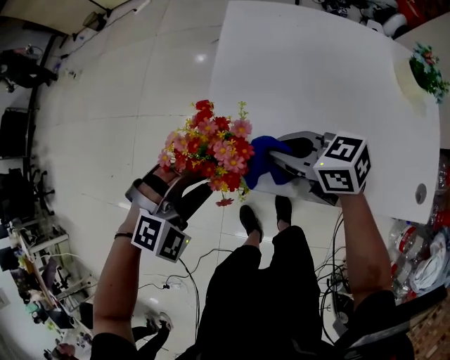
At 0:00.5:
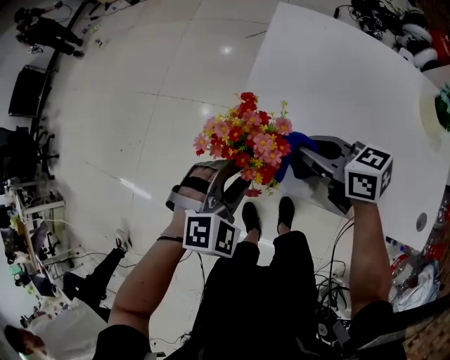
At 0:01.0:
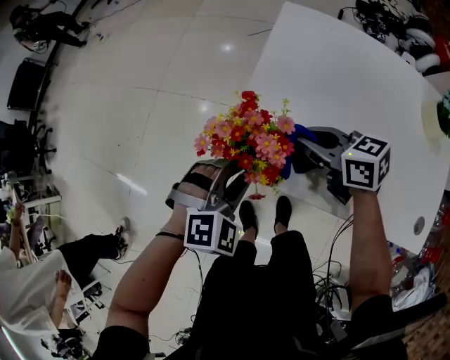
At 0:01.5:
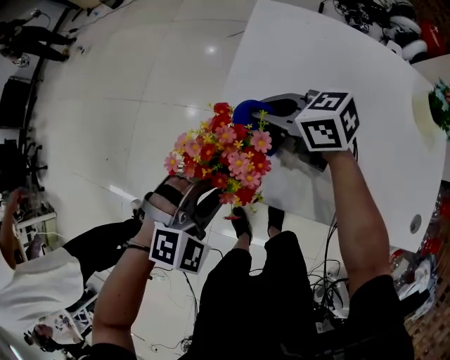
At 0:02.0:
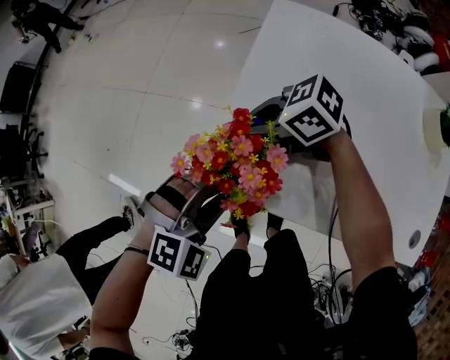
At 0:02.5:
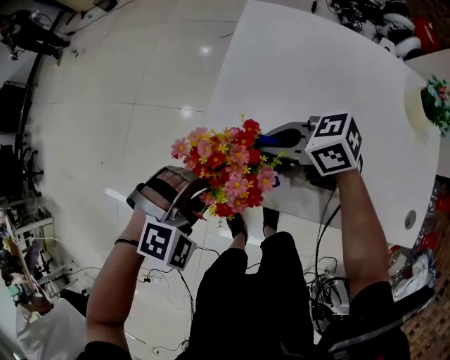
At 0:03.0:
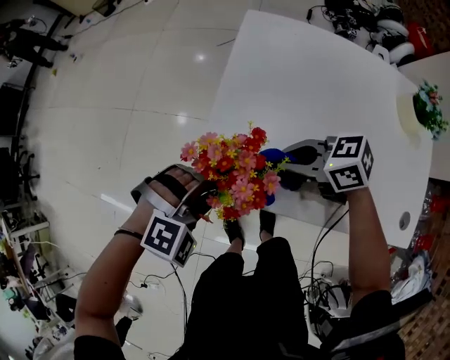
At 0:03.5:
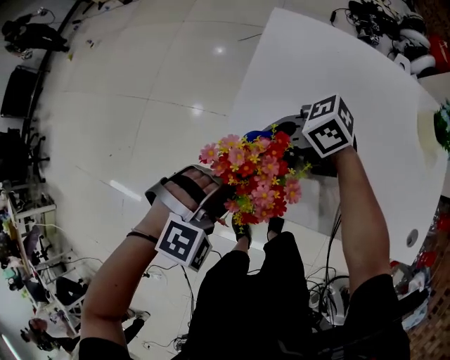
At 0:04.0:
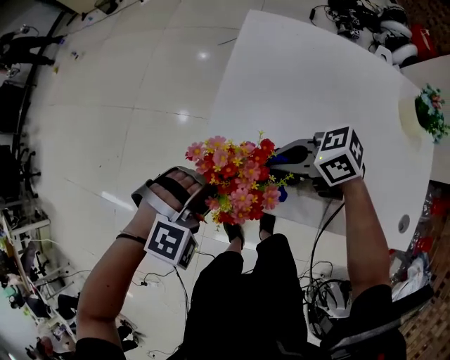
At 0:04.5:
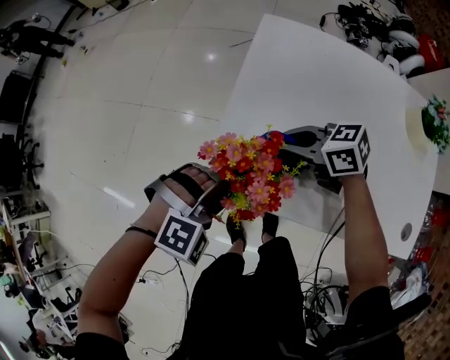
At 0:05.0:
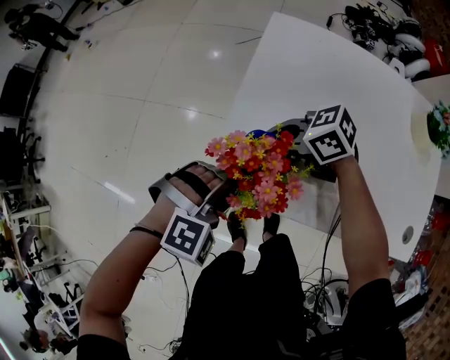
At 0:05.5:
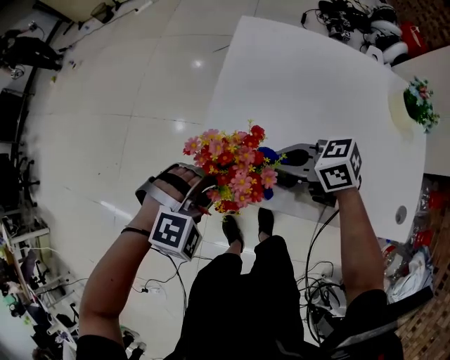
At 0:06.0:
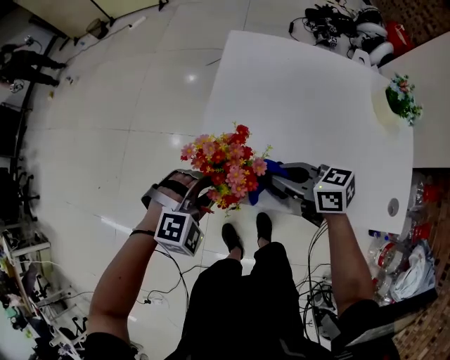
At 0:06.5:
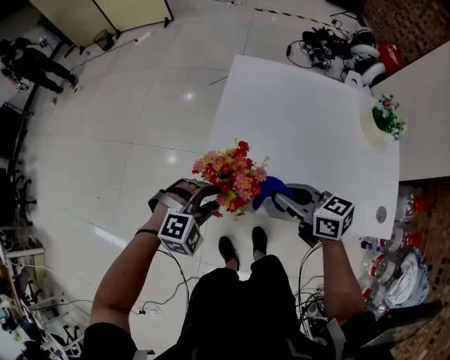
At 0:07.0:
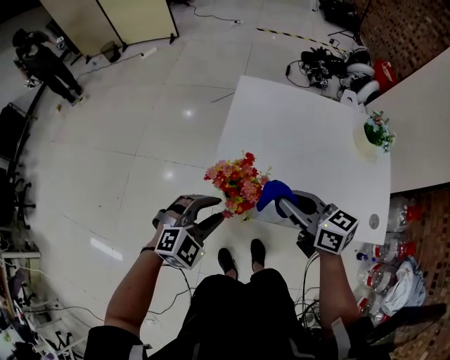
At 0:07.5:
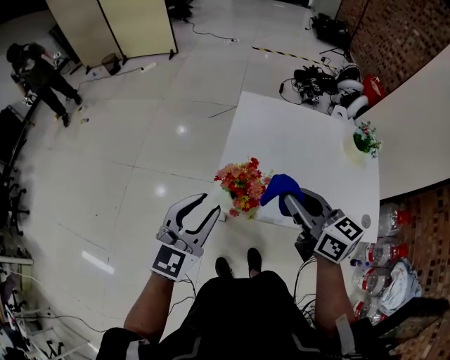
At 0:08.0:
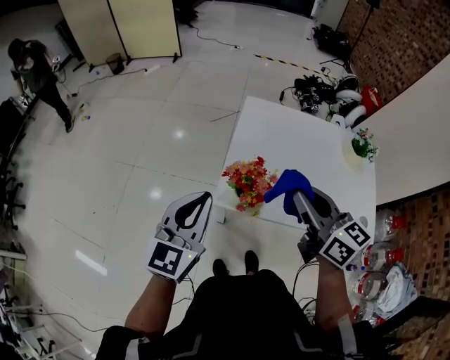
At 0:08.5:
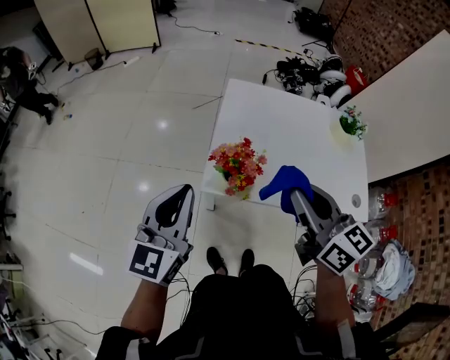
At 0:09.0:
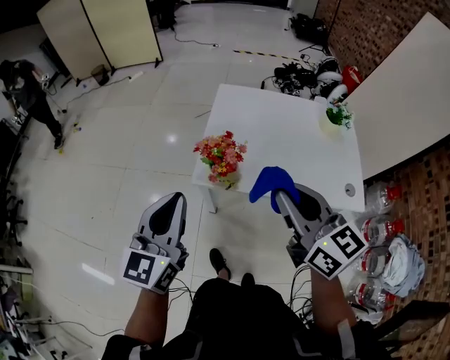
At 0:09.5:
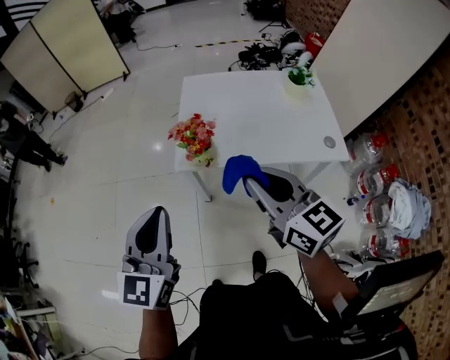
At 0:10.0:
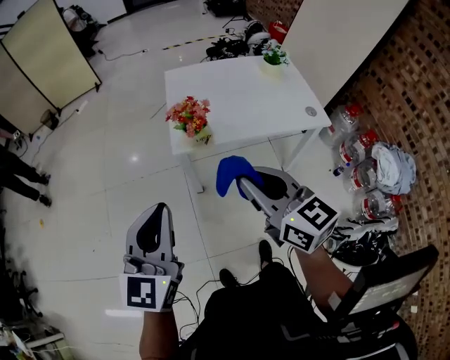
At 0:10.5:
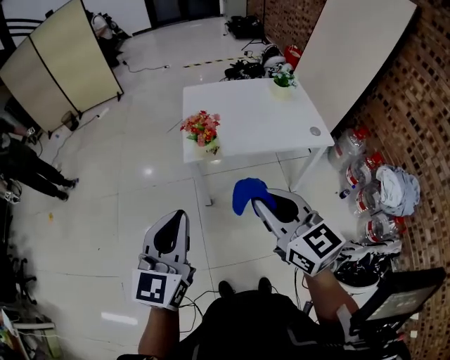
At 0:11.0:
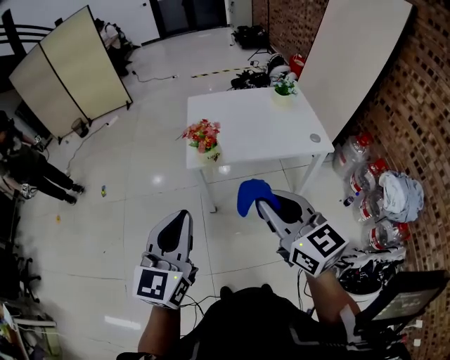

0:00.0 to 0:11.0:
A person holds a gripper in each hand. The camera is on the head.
0:00.0 to 0:02.0: The right gripper shifts by about 15 cm, and rotates approximately 30 degrees.
0:03.5 to 0:05.5: The right gripper ends up about 10 cm from where it was.
0:05.5 to 0:07.5: The grippers both shift upward by approximately 25 cm. The right gripper turns by roughly 50 degrees. Meanwhile the left gripper angles its fingers upward, by some 50 degrees.
0:07.5 to 0:09.0: Both grippers move backward and upward, roughly 15 cm. The left gripper closes its fingers.
0:09.0 to 0:11.0: The two grippers go some 25 cm backward.

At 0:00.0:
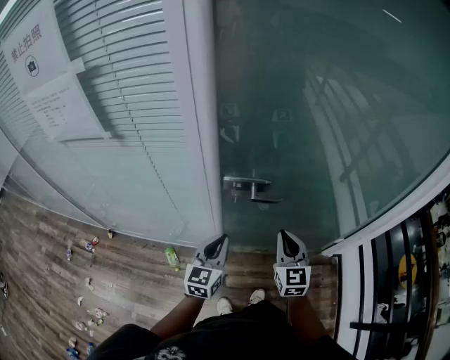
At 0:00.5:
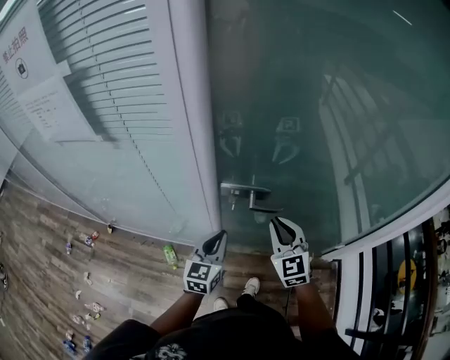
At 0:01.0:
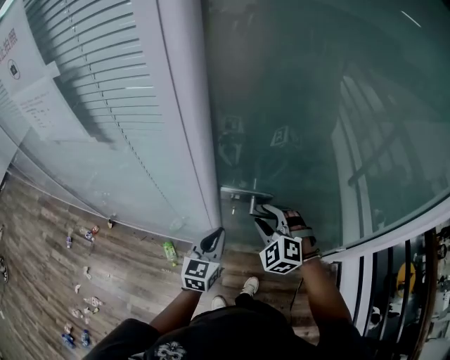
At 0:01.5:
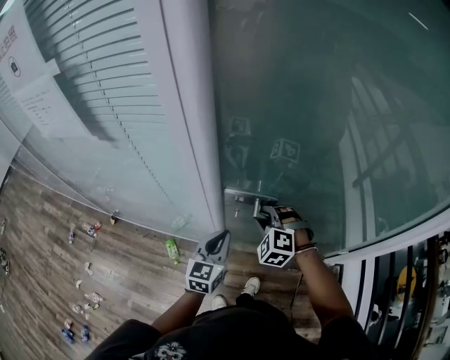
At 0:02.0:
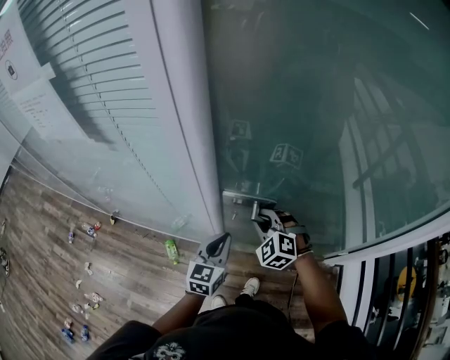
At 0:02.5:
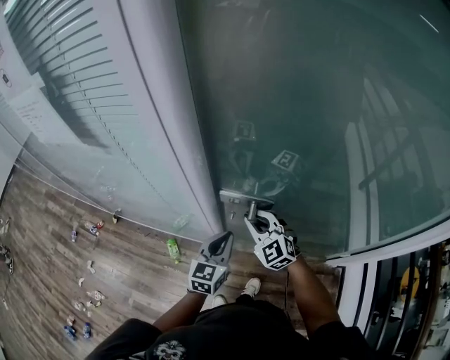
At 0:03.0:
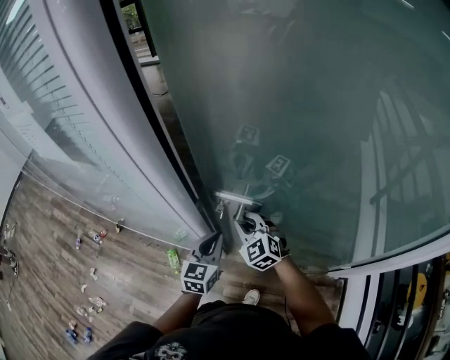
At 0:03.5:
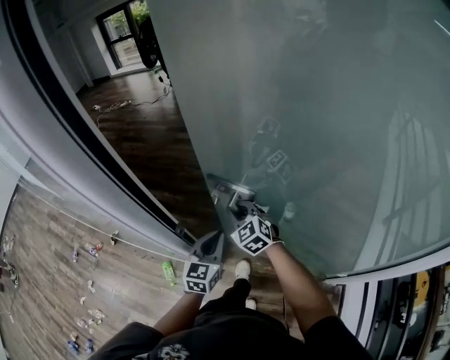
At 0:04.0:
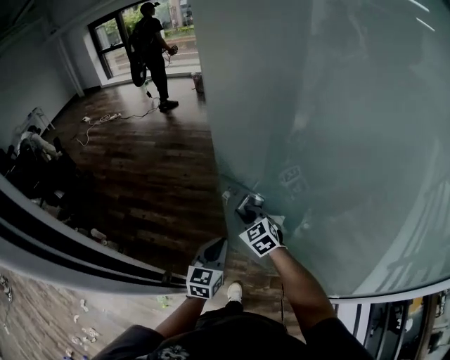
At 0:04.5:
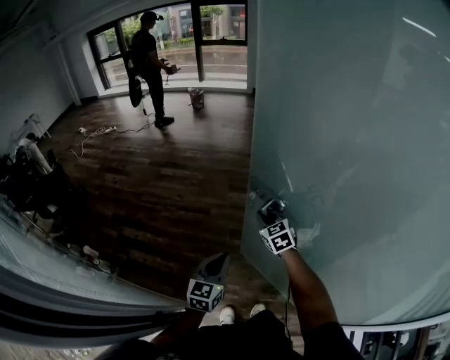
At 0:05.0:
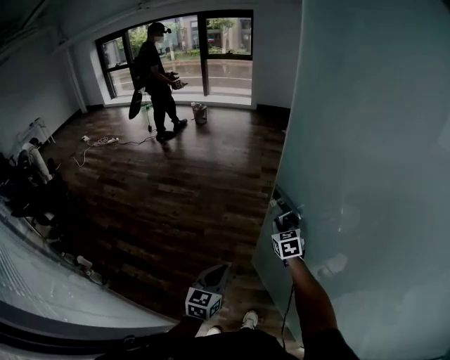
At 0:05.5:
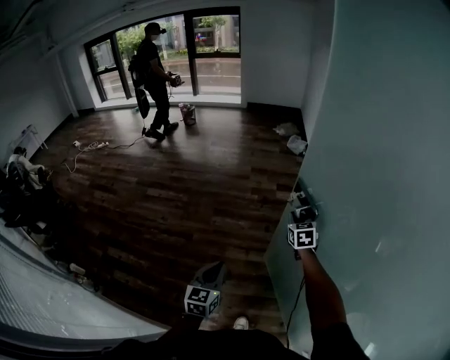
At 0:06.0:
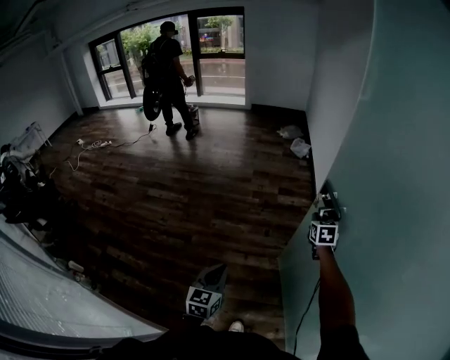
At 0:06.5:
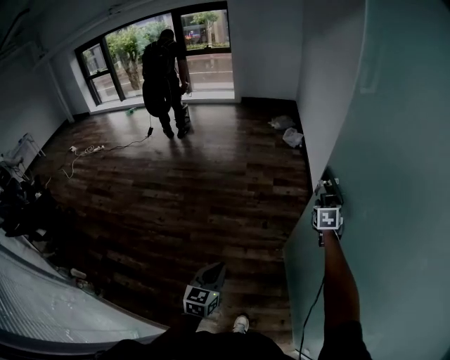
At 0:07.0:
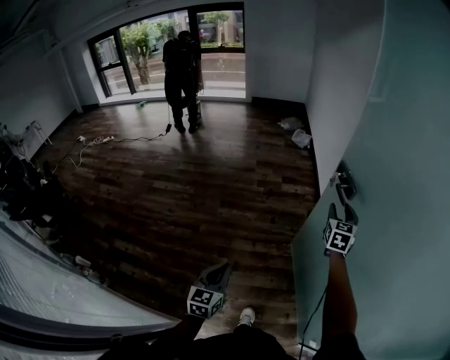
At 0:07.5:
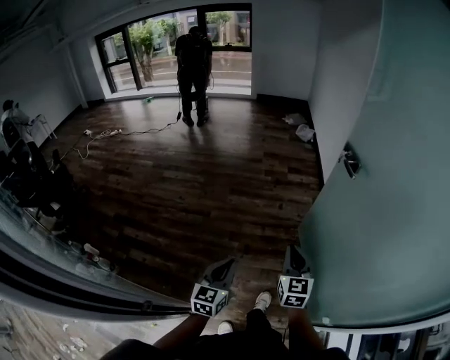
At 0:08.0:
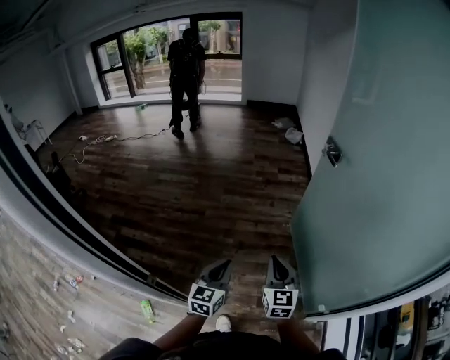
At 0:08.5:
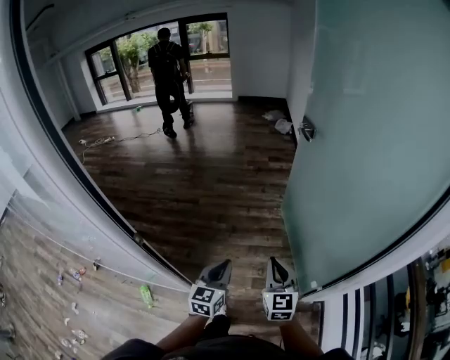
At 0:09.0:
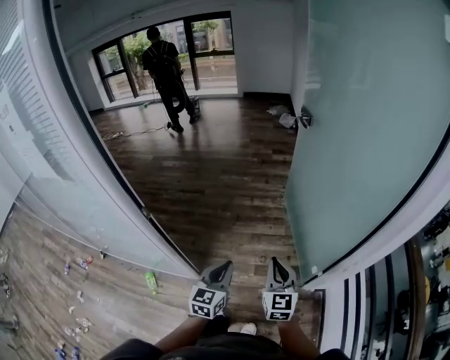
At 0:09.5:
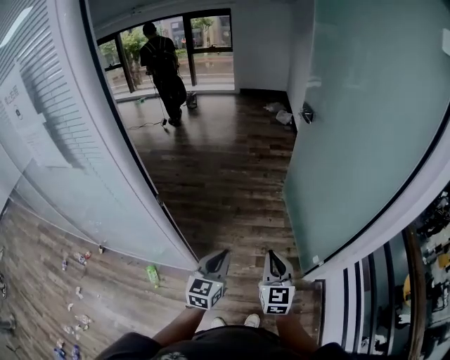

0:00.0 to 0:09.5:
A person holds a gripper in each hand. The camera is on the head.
0:00.0 to 0:02.0: The left gripper travels forward by approximately 10 cm. The right gripper is displaced forward and to the left by roughly 15 cm, twists roughly 50 degrees counterclockwise, seen from behind, and opens, then closes again.
0:02.0 to 0:04.0: The left gripper is displaced forward and to the right by some 30 cm. Meanwhile the right gripper goes about 30 cm forward, and swivels roughly 30 degrees.
0:04.0 to 0:05.5: The left gripper moves forward and to the right, some 35 cm, while the right gripper goes about 60 cm to the right and forward, and turns by about 40 degrees.
0:05.5 to 0:07.5: The right gripper heads backward, covering about 40 cm, and opens and closes again; the left gripper moves backward, roughly 25 cm.
0:07.5 to 0:09.5: The two grippers travel together, backward, roughly 50 cm.

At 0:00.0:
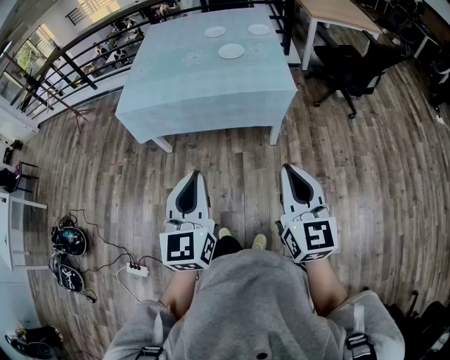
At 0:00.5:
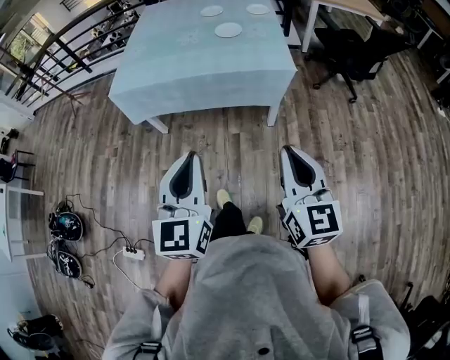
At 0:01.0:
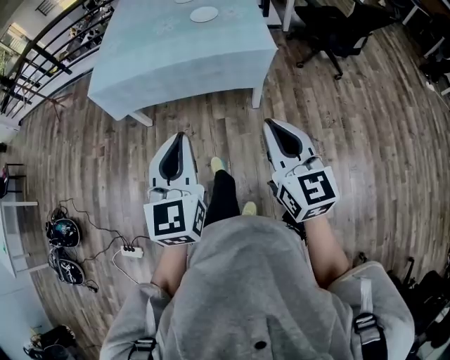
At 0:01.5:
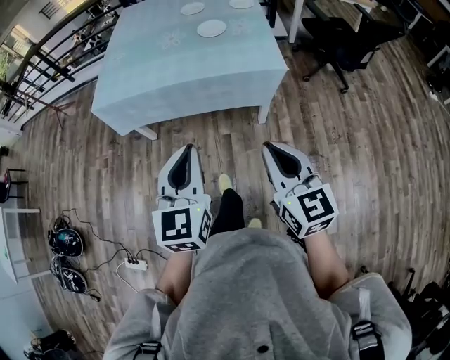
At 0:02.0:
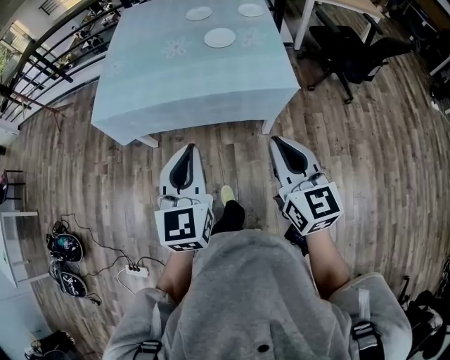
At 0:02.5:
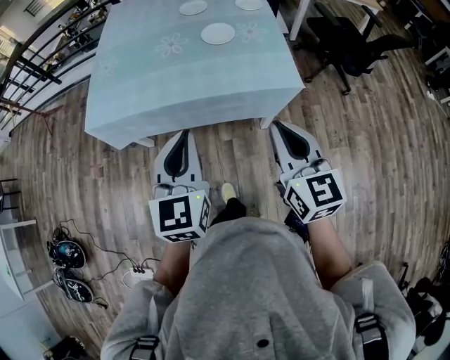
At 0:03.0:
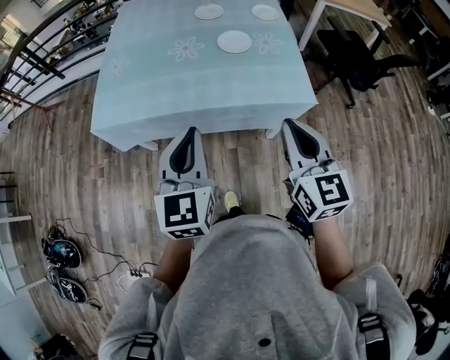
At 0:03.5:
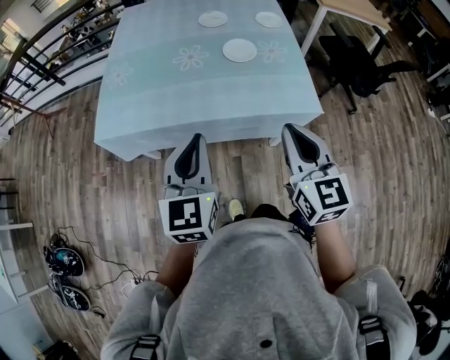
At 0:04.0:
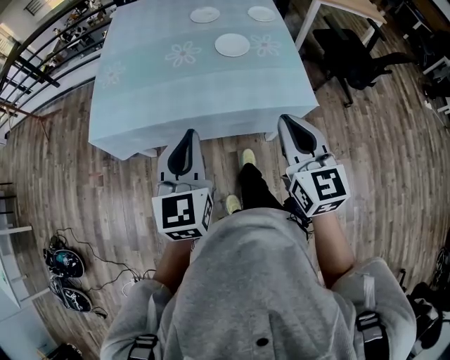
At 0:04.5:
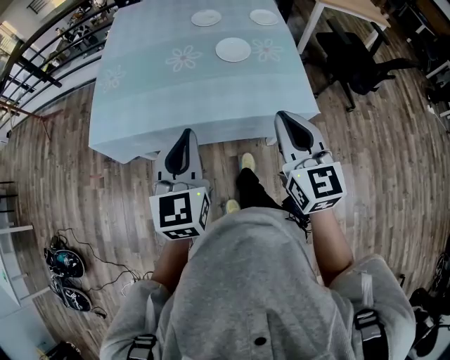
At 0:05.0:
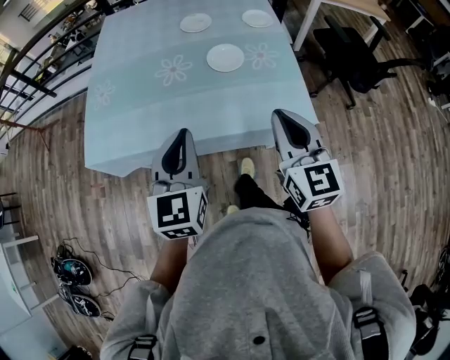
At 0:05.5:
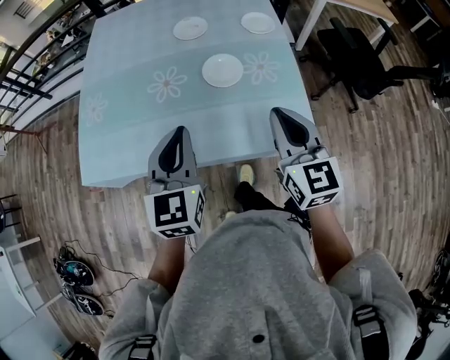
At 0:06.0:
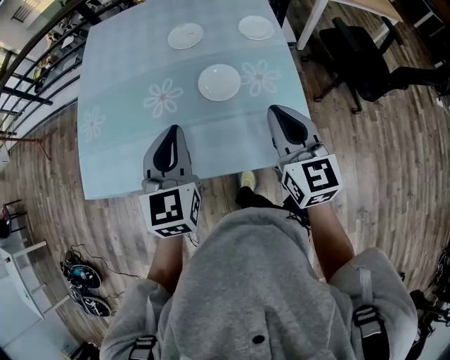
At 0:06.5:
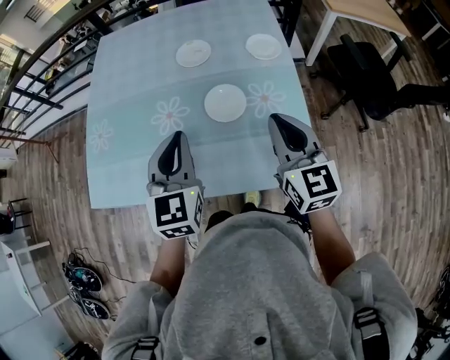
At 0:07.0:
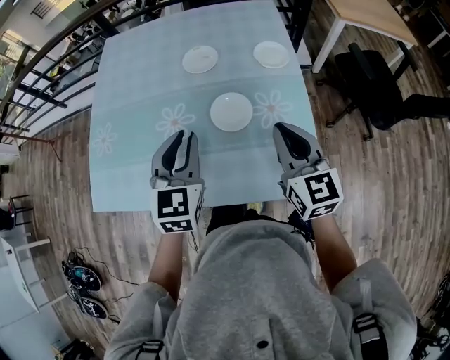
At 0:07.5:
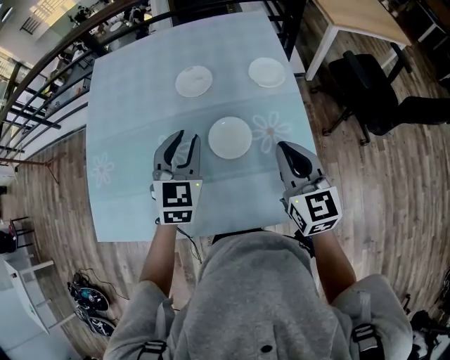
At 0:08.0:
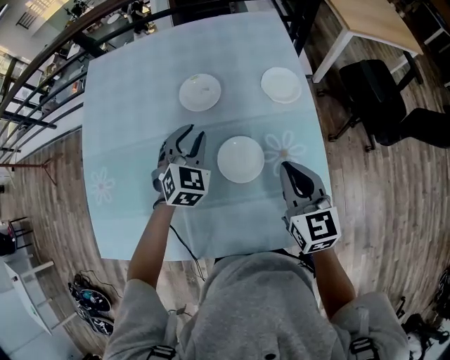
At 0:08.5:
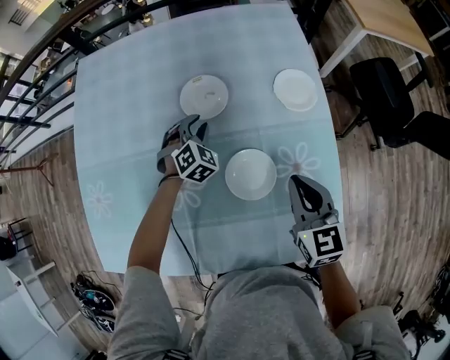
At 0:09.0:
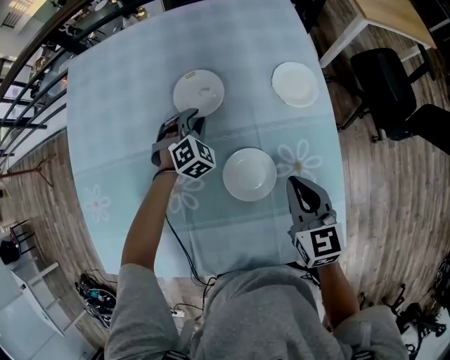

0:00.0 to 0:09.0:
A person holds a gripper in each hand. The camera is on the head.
0:00.0 to 0:02.0: The two grippers go roughly 20 cm forward.
0:02.0 to 0:04.5: Both grippers move forward, roughly 20 cm.
0:04.5 to 0:07.0: Both grippers travel together forward, about 30 cm.
0:07.0 to 0:09.0: The right gripper shifts roughly 20 cm forward and downward, while the left gripper heads forward and downward, covering roughly 40 cm, and rolls clockwise, seen from behind, by about 40 degrees.
